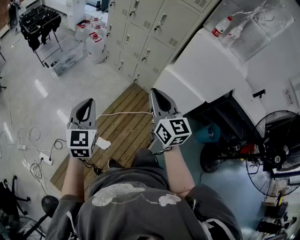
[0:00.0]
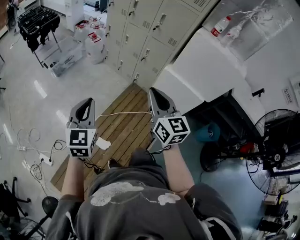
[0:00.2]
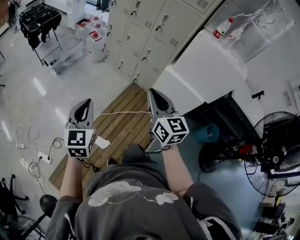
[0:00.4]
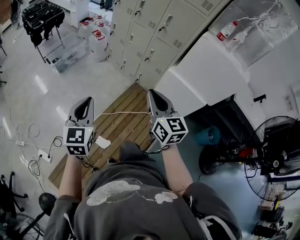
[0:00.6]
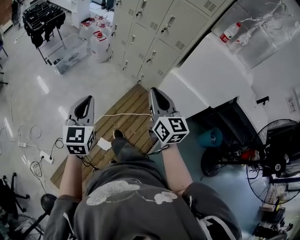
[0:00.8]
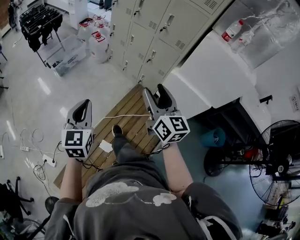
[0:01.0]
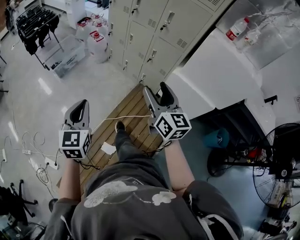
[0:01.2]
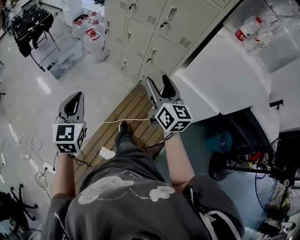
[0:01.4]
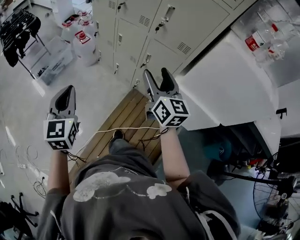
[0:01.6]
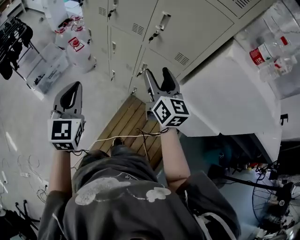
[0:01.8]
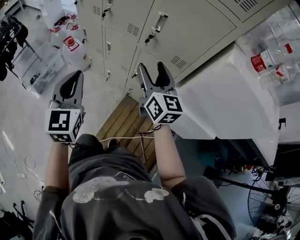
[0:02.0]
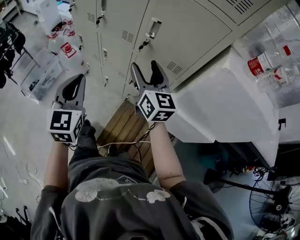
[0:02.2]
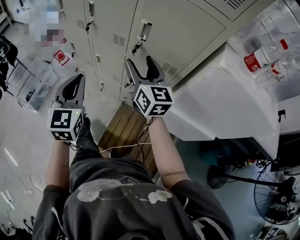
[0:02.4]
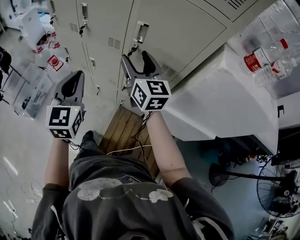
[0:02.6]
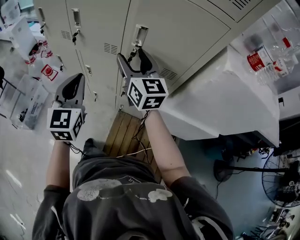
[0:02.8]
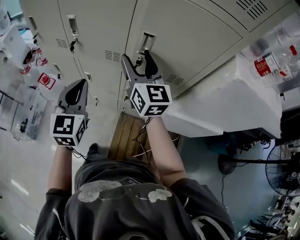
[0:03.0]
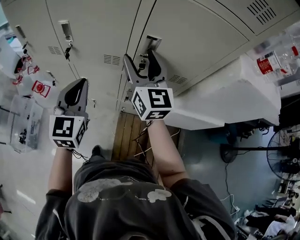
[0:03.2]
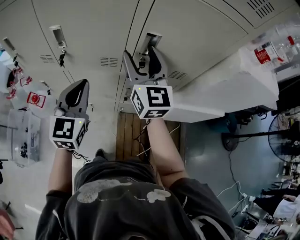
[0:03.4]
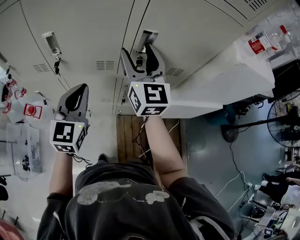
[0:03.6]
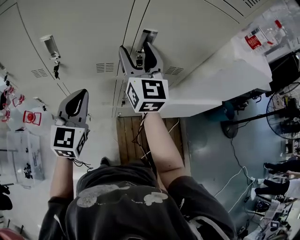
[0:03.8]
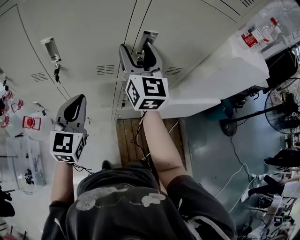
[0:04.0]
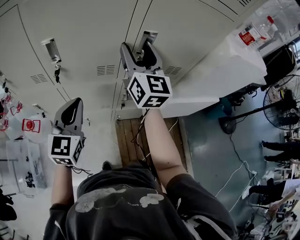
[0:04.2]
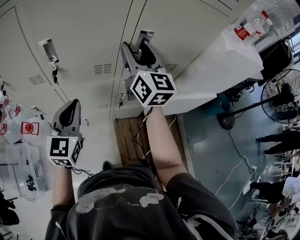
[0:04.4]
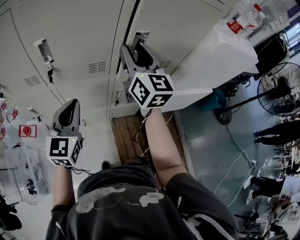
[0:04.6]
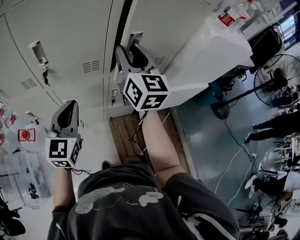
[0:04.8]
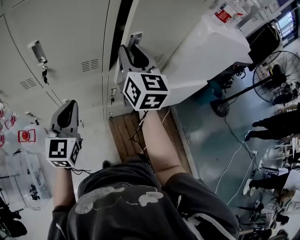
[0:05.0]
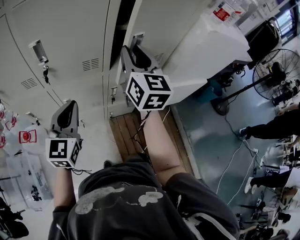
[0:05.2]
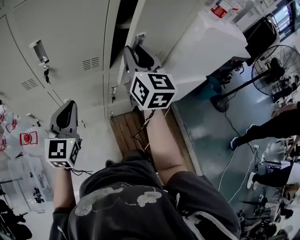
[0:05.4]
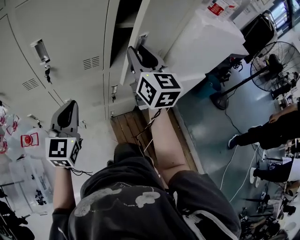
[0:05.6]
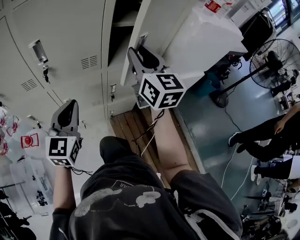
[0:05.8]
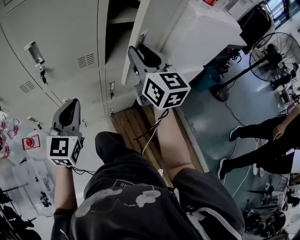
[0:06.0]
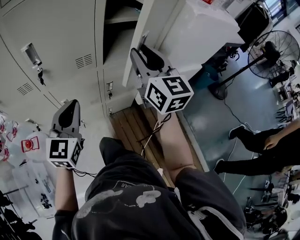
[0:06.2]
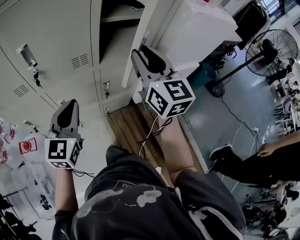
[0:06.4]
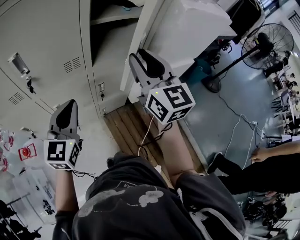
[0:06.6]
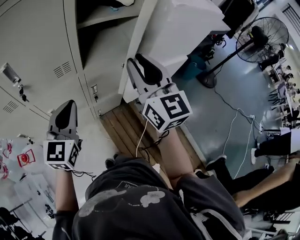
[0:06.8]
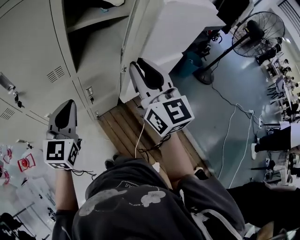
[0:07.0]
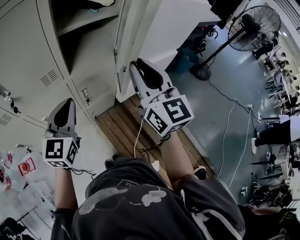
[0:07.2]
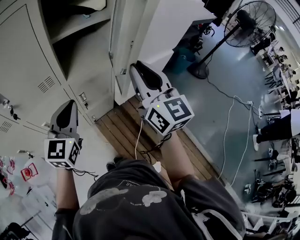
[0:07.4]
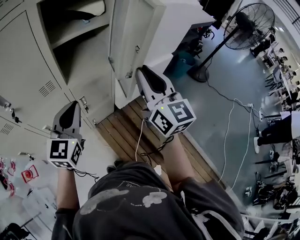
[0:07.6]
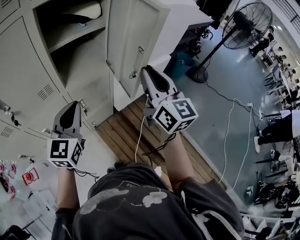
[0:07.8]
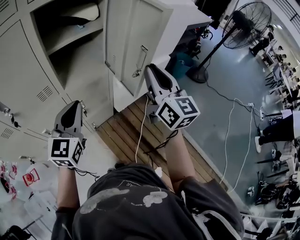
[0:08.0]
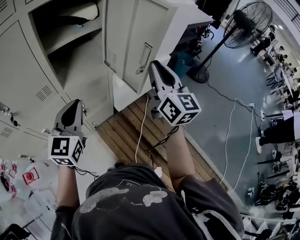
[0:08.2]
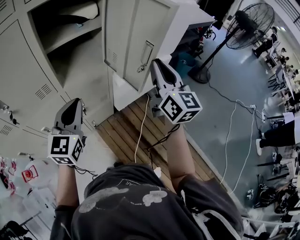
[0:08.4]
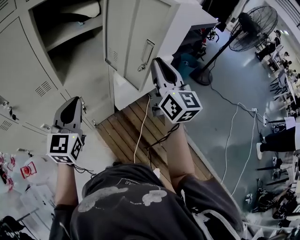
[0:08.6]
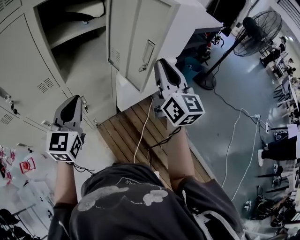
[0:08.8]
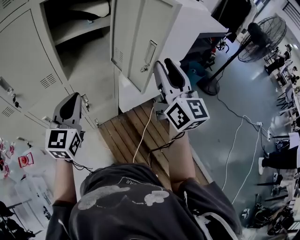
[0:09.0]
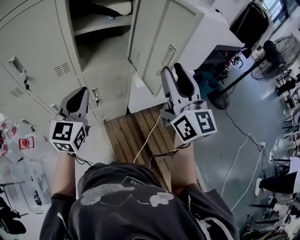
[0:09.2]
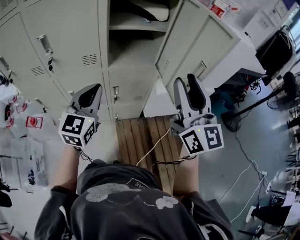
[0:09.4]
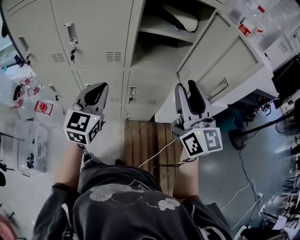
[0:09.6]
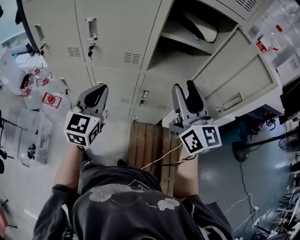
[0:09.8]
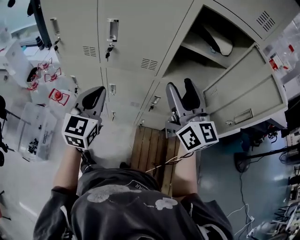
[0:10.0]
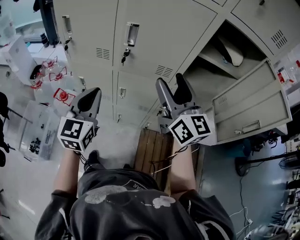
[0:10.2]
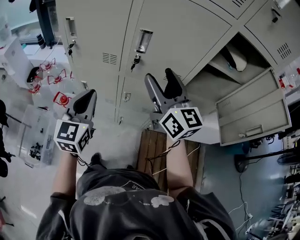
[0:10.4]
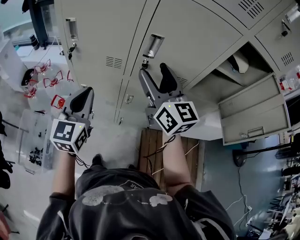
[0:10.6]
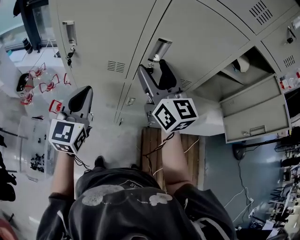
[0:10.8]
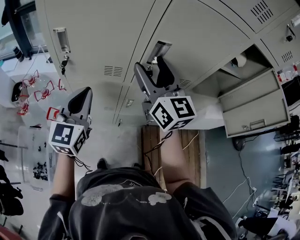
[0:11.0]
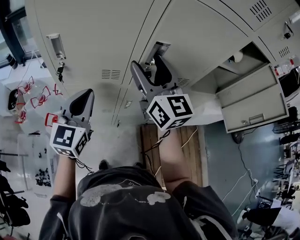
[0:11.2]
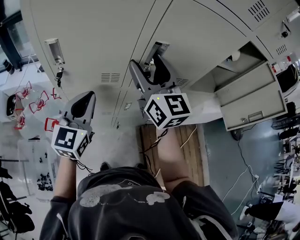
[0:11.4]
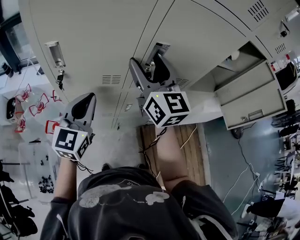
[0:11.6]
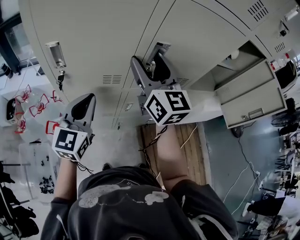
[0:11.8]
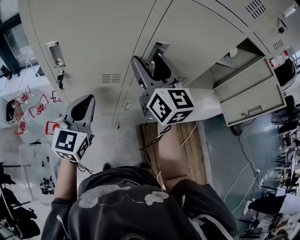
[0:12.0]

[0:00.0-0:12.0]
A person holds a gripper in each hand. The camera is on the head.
0:00.0 to 0:01.6: The two grippers go approximately 40 cm forward. The right gripper opens its fingers.
0:01.6 to 0:03.0: The two grippers go roughly 35 cm forward. The left gripper changes its angle by approximately 30 degrees.
0:03.0 to 0:04.4: The left gripper shifts by some 10 cm, and changes its angle by approximately 30 degrees, while the right gripper changes place by about 5 cm, and changes its angle by approximately 20 degrees.
0:04.4 to 0:06.0: The left gripper shifts by some 5 cm, while the right gripper travels backward and to the right by some 15 cm, and closes.
0:06.0 to 0:07.6: Both grippers move to the right, about 15 cm.
0:07.6 to 0:09.0: The right gripper shifts some 10 cm to the right.
0:09.0 to 0:10.4: The two grippers travel together, some 40 cm. The right gripper turns by about 40 degrees, and opens up. Meanwhile the left gripper changes its angle by roughly 30 degrees.
0:10.4 to 0:12.0: Both grippers move forward and to the left, approximately 15 cm. The left gripper rotates roughly 20 degrees.

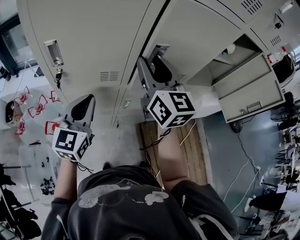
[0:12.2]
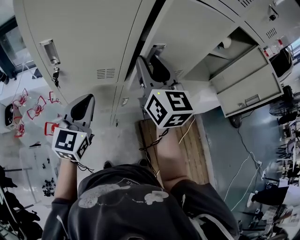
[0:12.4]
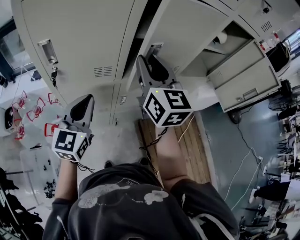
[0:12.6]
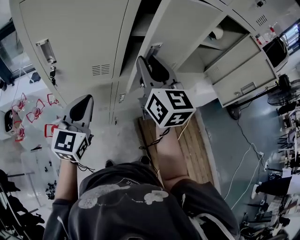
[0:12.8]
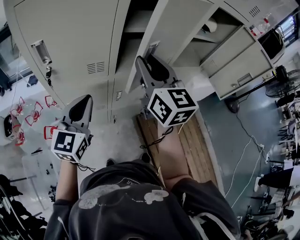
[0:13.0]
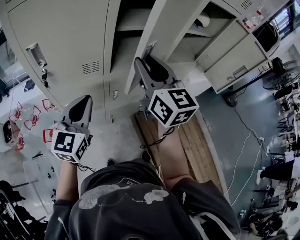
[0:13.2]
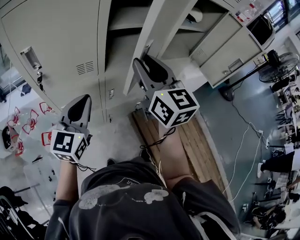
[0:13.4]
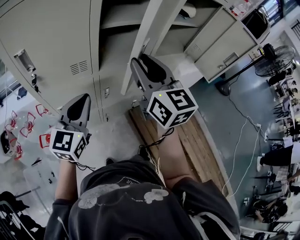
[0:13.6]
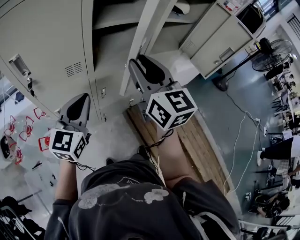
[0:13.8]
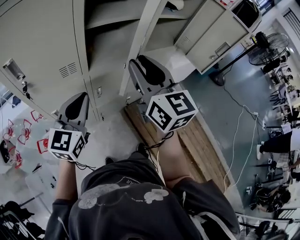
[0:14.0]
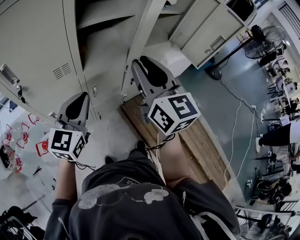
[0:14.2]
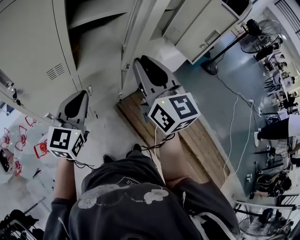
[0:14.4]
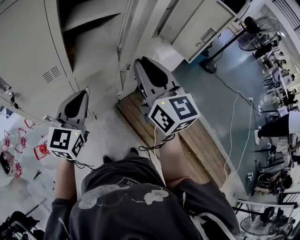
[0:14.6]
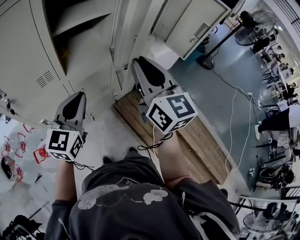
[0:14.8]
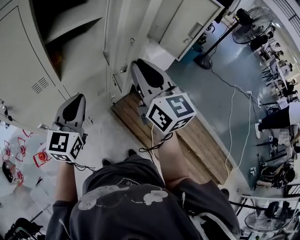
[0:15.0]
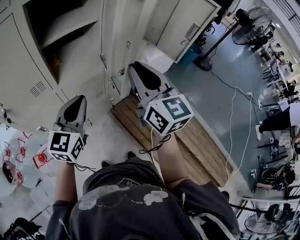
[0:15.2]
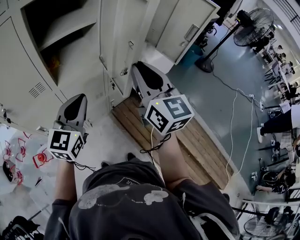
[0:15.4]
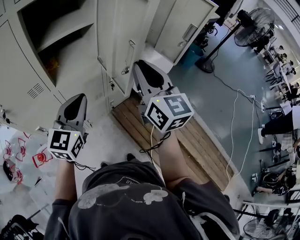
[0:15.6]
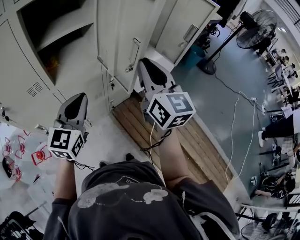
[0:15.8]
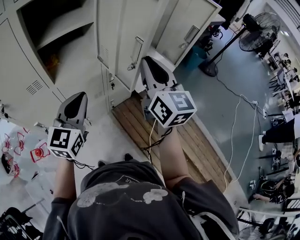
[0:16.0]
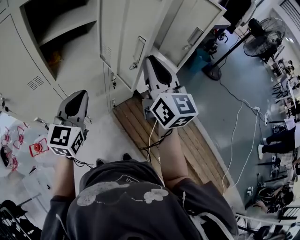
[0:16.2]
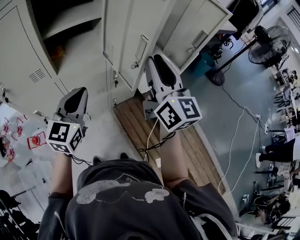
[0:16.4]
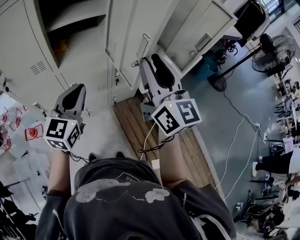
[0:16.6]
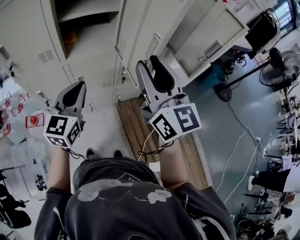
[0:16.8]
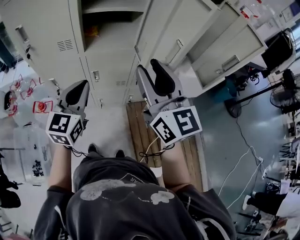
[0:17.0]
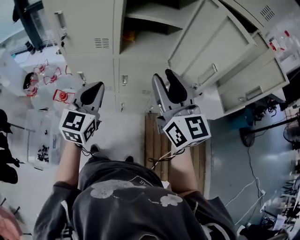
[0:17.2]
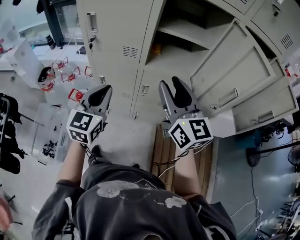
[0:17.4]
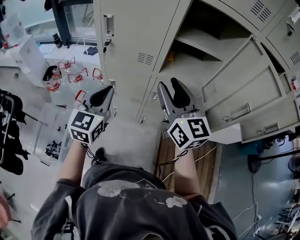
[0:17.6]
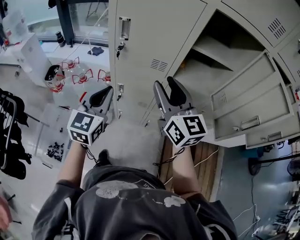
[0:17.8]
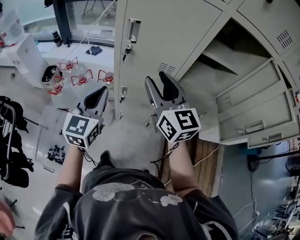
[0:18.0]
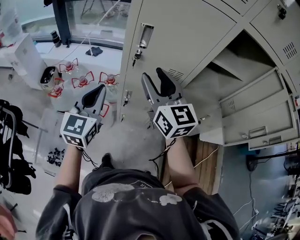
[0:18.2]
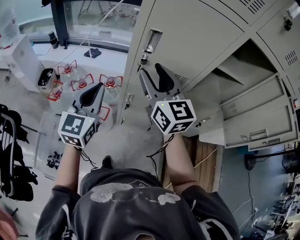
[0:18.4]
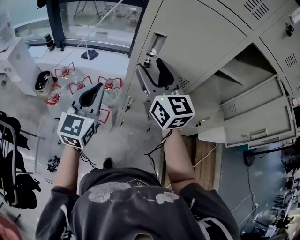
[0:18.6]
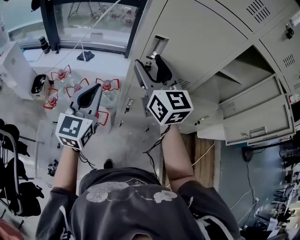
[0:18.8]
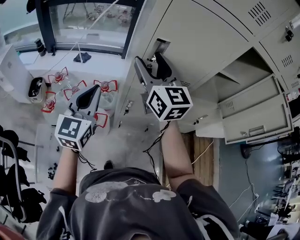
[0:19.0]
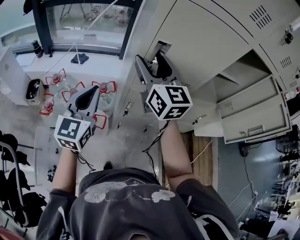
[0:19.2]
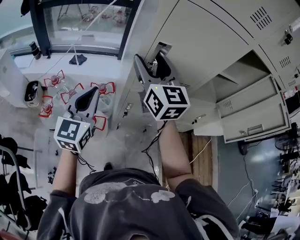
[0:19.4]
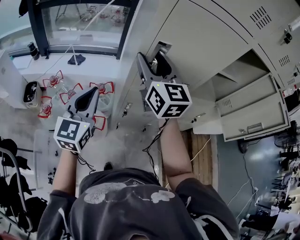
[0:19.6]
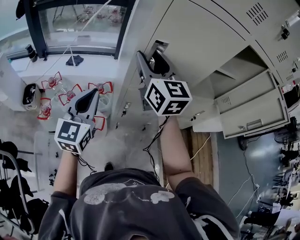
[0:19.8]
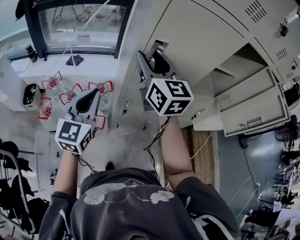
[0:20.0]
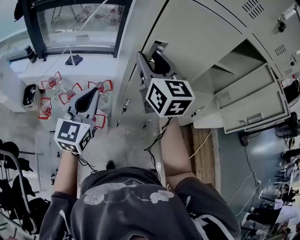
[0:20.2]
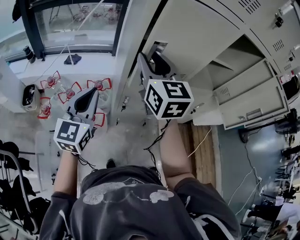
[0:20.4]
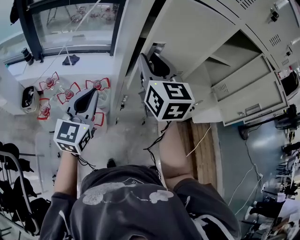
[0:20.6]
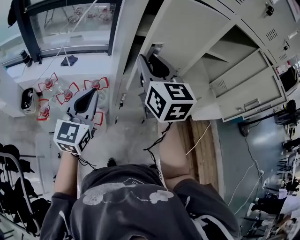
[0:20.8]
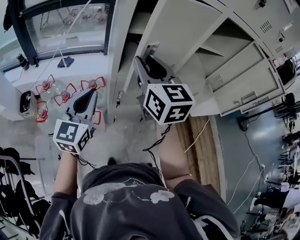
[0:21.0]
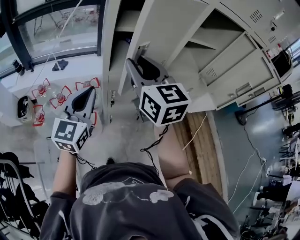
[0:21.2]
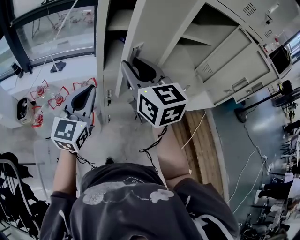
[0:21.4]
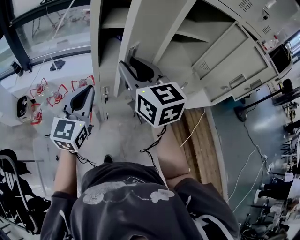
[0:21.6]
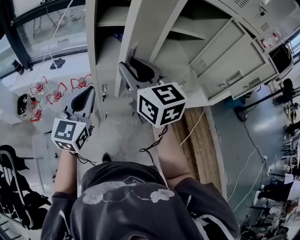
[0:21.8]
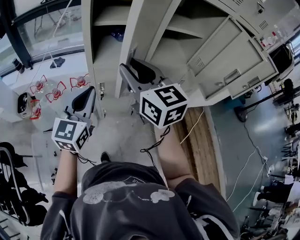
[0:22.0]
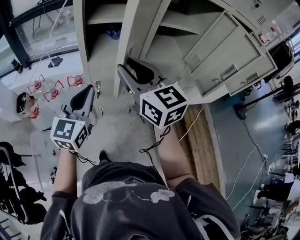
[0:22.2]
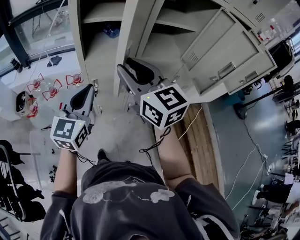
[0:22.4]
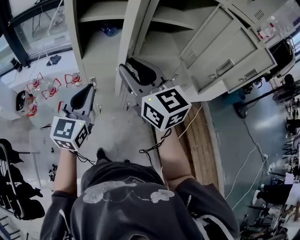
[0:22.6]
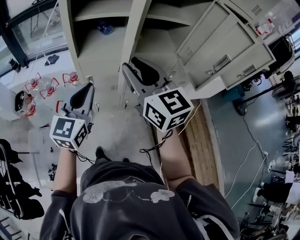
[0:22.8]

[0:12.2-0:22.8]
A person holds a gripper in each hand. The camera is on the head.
0:12.2 to 0:13.8: The left gripper is displaced to the right by about 10 cm. Meanwhile the right gripper travels backward and to the right by approximately 15 cm.
0:13.8 to 0:15.2: Both grippers travel together to the right, approximately 15 cm.
0:16.8 to 0:18.2: Both grippers are carried roughly 50 cm. The left gripper rotates about 30 degrees; the right gripper changes its angle by approximately 30 degrees.
0:18.2 to 0:19.8: Both grippers move forward and to the left, approximately 15 cm.
0:19.8 to 0:21.2: The right gripper heads backward and to the right, covering approximately 10 cm. The left gripper travels to the right and backward by roughly 10 cm.
0:21.2 to 0:22.8: Both grippers move to the right and backward, roughly 20 cm.

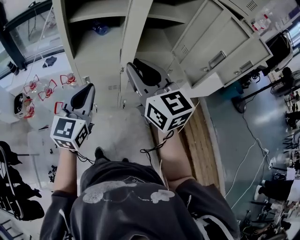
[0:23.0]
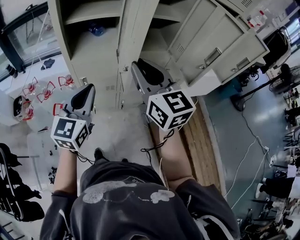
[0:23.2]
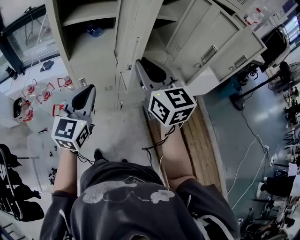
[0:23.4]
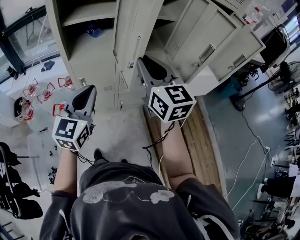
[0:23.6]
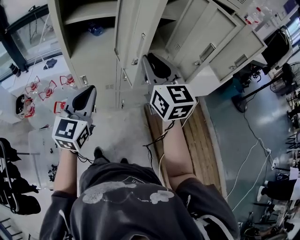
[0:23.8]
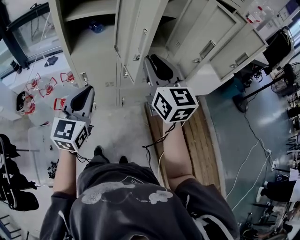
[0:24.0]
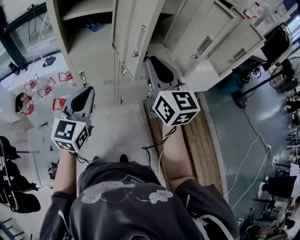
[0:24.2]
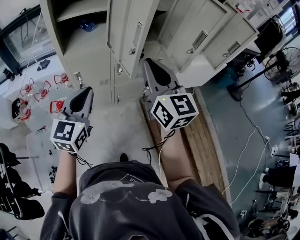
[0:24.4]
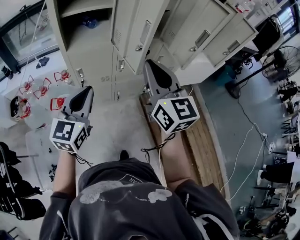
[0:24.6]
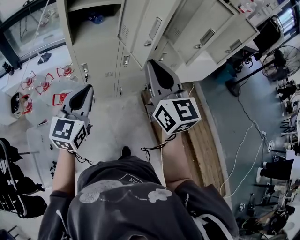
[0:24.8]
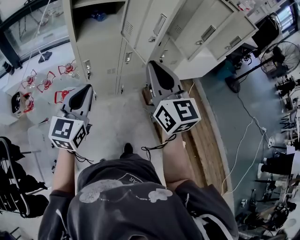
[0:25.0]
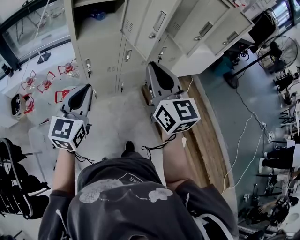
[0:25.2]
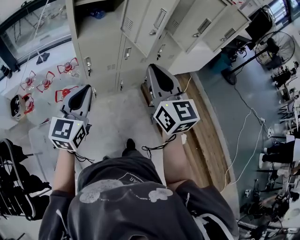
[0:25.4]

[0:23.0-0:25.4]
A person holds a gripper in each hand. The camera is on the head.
0:23.0 to 0:24.2: The right gripper moves to the right, about 10 cm. The left gripper is displaced backward by some 5 cm.
0:24.2 to 0:25.4: The right gripper shifts about 15 cm backward and to the left. Meanwhile the left gripper travels to the left and backward by some 15 cm.
